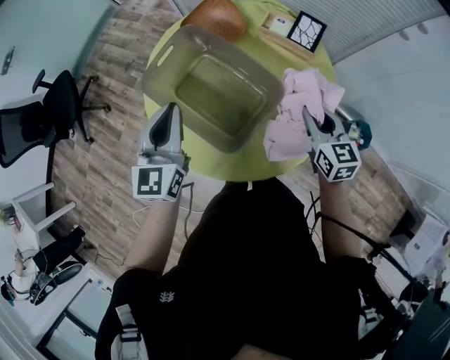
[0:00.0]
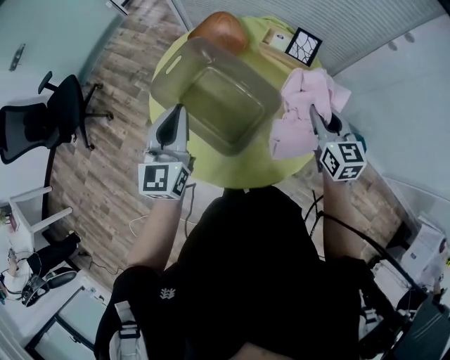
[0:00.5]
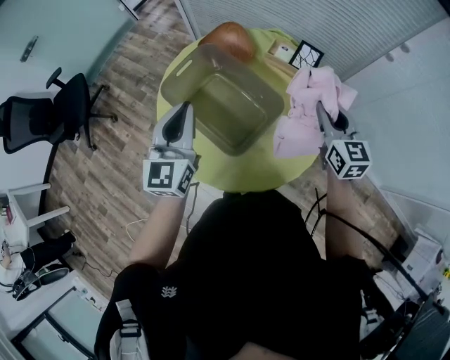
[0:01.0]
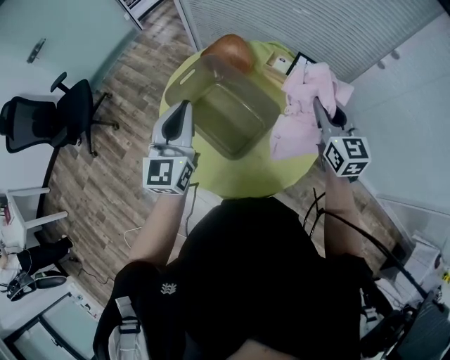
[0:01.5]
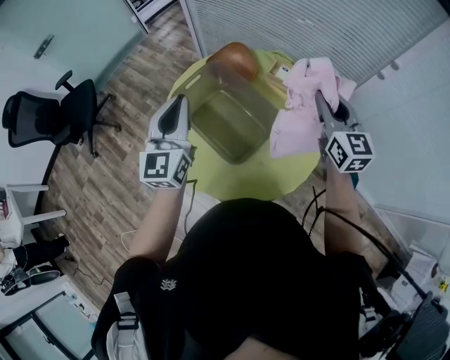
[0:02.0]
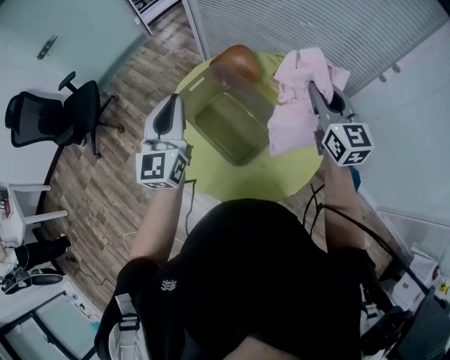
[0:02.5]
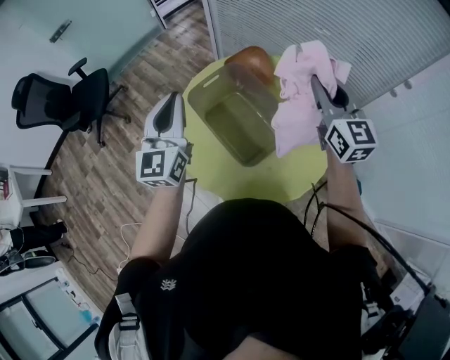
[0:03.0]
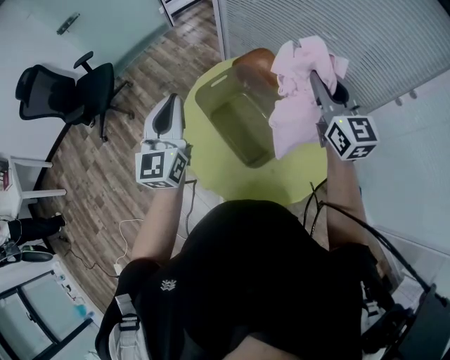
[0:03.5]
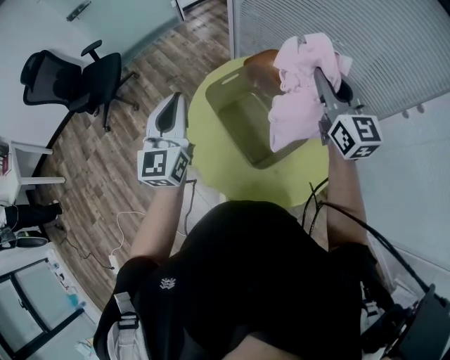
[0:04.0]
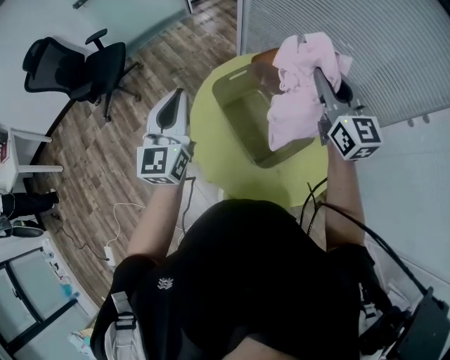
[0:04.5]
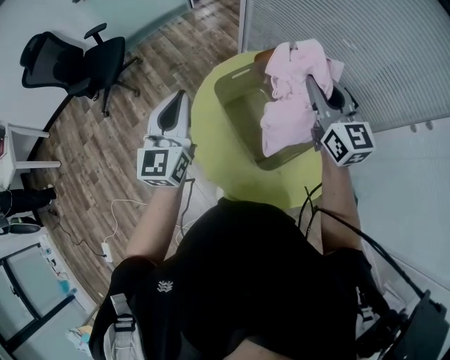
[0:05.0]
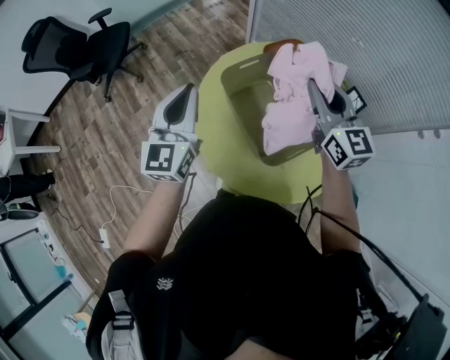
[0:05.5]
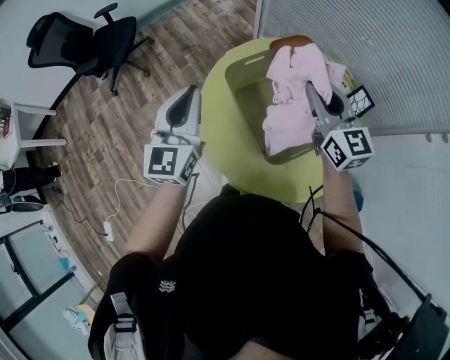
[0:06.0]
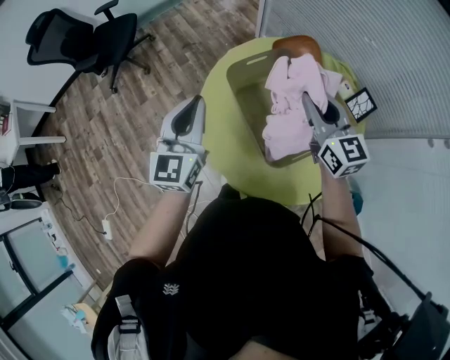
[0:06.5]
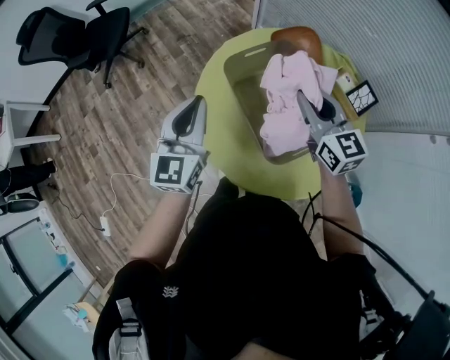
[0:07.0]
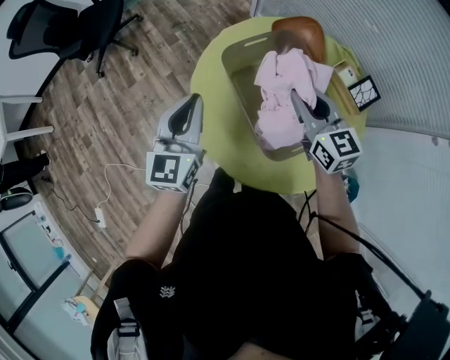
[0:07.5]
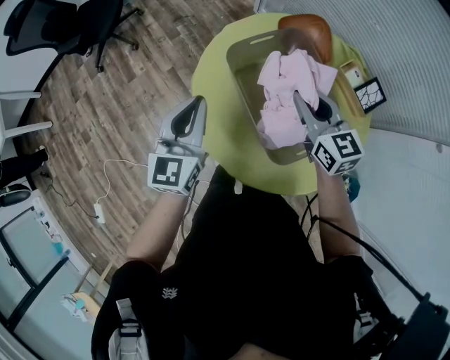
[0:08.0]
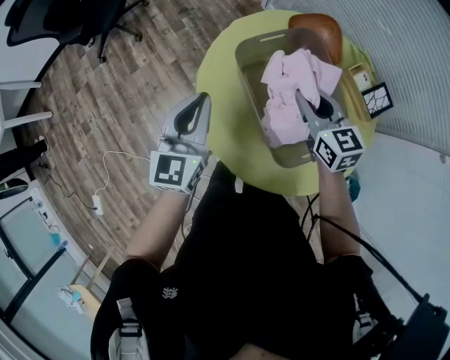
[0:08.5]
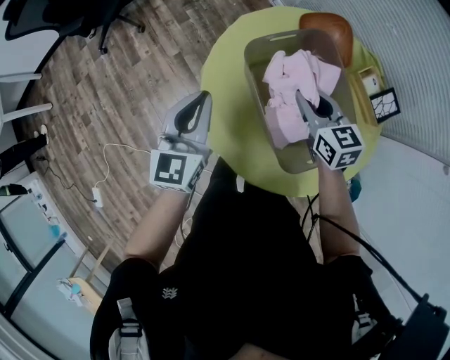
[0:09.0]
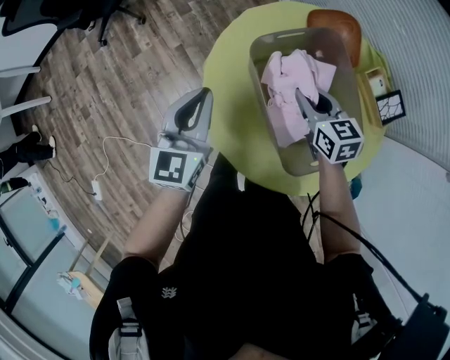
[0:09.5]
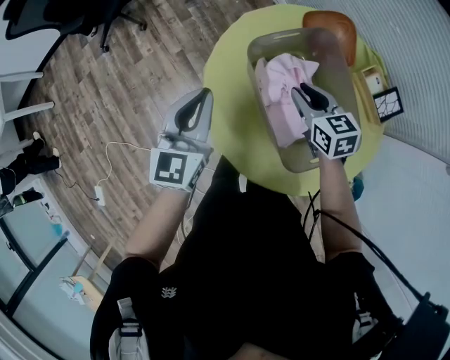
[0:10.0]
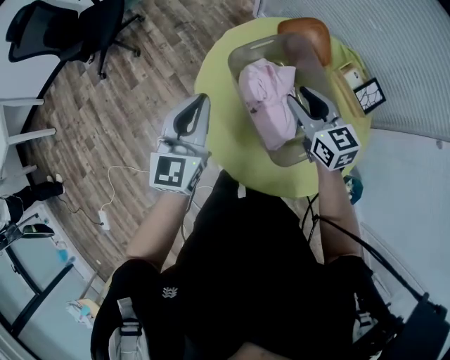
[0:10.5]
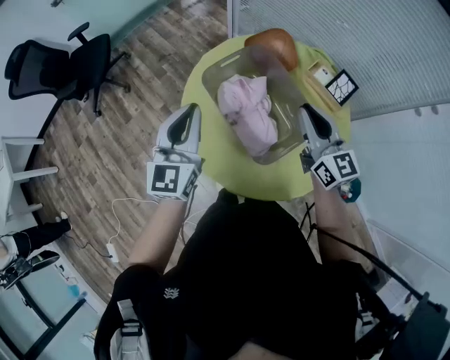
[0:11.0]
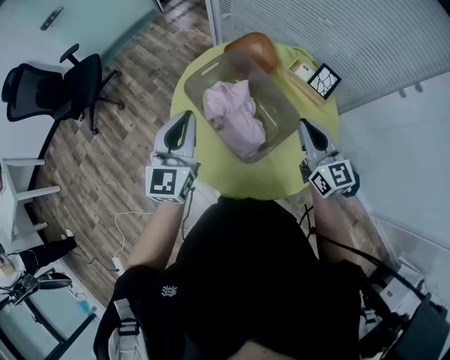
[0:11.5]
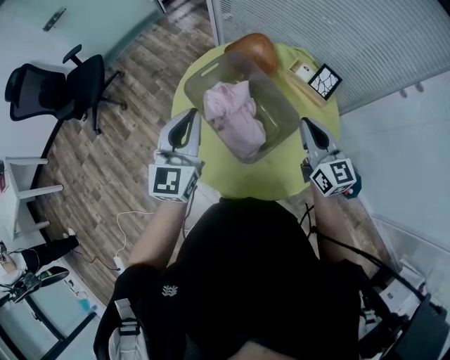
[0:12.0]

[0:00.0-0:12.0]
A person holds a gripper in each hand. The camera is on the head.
0:00.0 to 0:02.0: The left gripper is displaced upward by about 10 cm, while the right gripper goes about 20 cm upward, and changes its angle by about 20 degrees.
0:02.0 to 0:04.0: The right gripper is displaced to the left, upward and forward by roughly 15 cm. Meanwhile the left gripper shifts about 10 cm to the left.
0:04.0 to 0:06.0: The right gripper is displaced downward and to the left by approximately 10 cm.
0:06.0 to 0:08.0: The grippers both shift downward by roughly 10 cm.
0:08.0 to 0:10.0: The right gripper shifts roughly 10 cm downward.
0:10.0 to 0:12.0: The right gripper goes some 30 cm to the right, upward and backward, and points its fingers about 30 degrees further upward; the left gripper shifts approximately 20 cm to the right and upward, and turns by about 20 degrees.

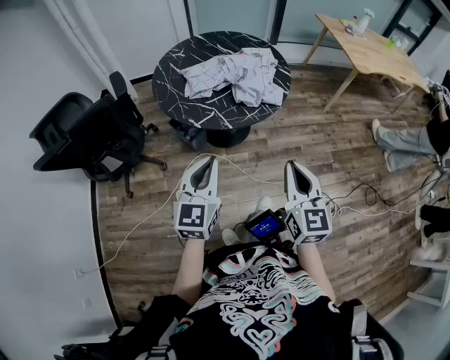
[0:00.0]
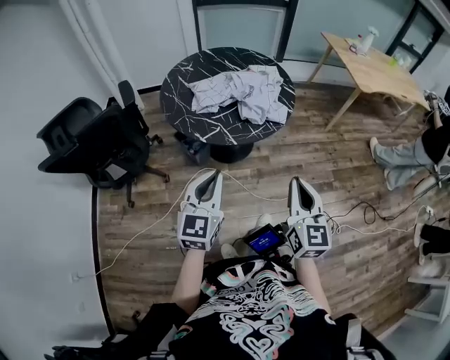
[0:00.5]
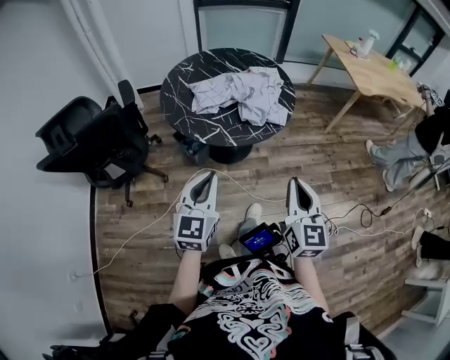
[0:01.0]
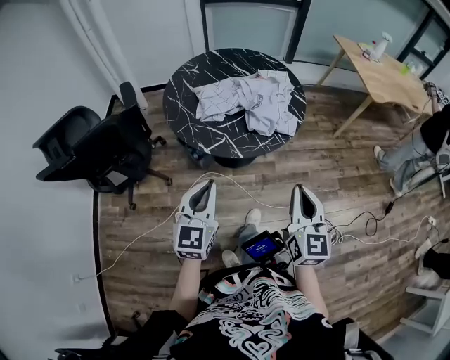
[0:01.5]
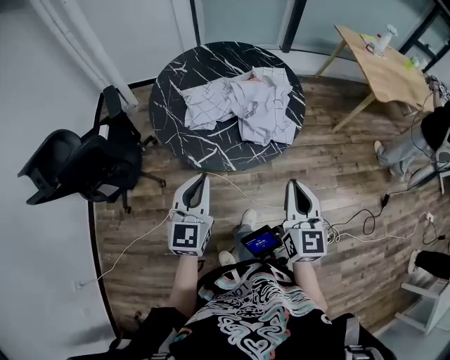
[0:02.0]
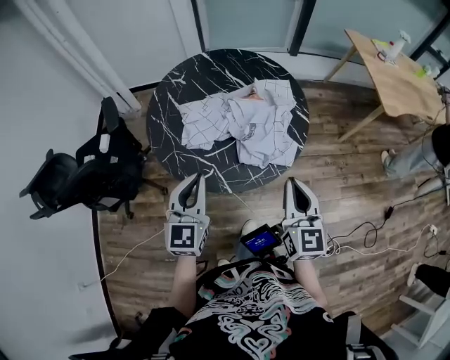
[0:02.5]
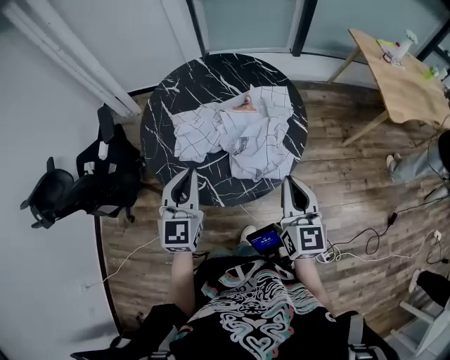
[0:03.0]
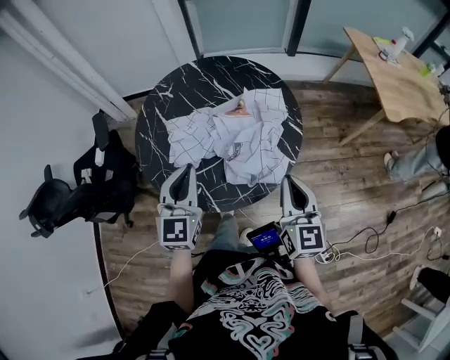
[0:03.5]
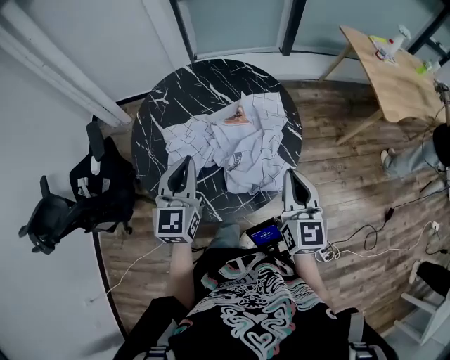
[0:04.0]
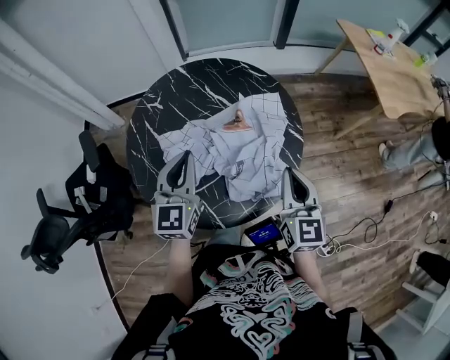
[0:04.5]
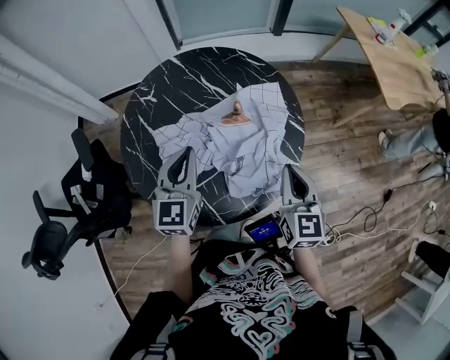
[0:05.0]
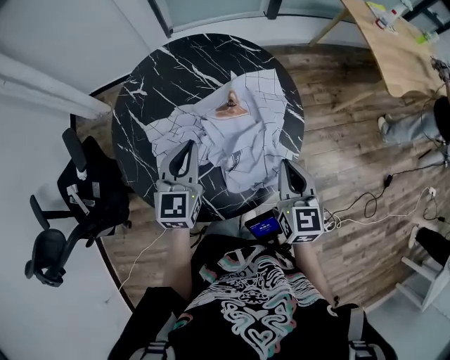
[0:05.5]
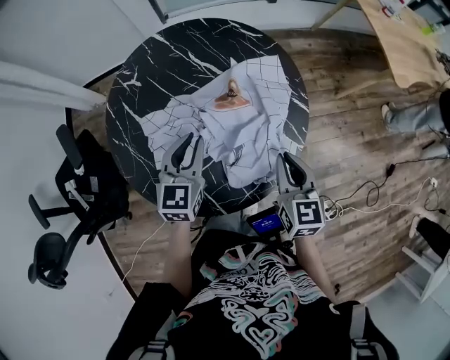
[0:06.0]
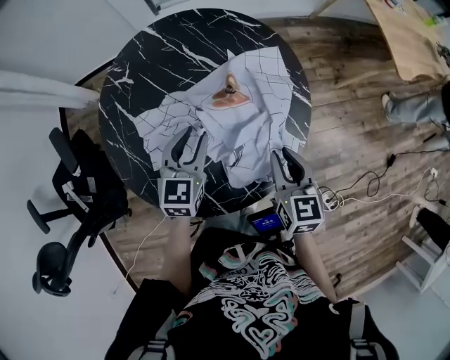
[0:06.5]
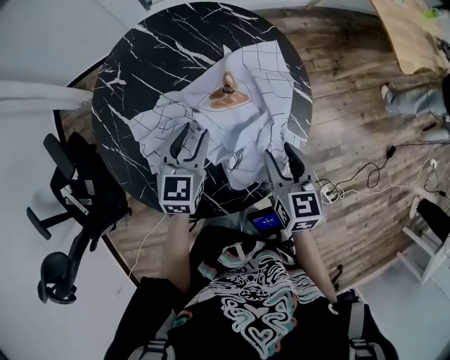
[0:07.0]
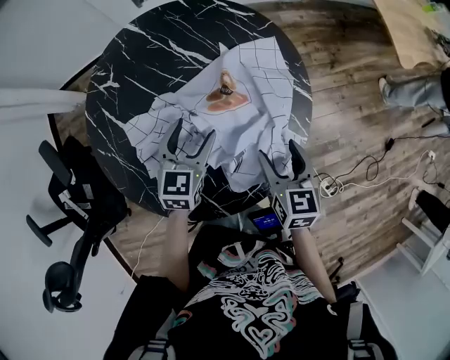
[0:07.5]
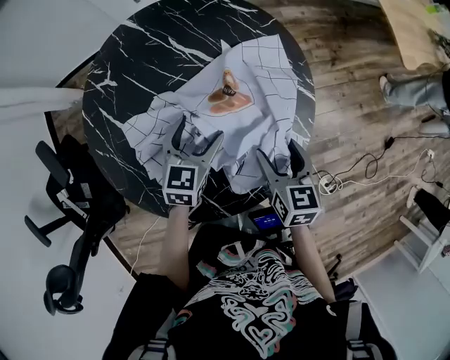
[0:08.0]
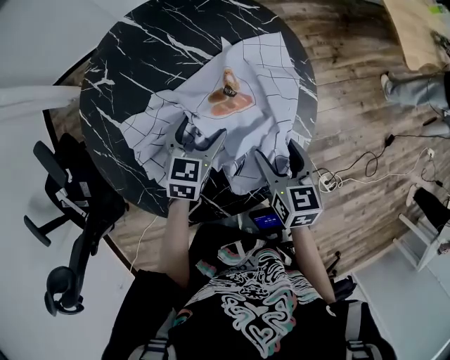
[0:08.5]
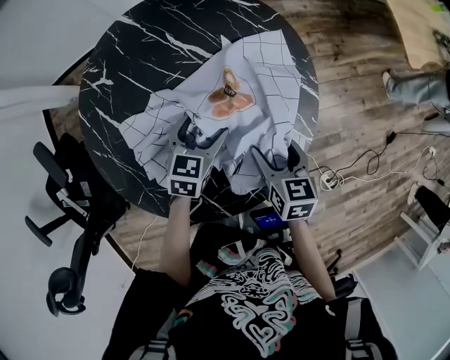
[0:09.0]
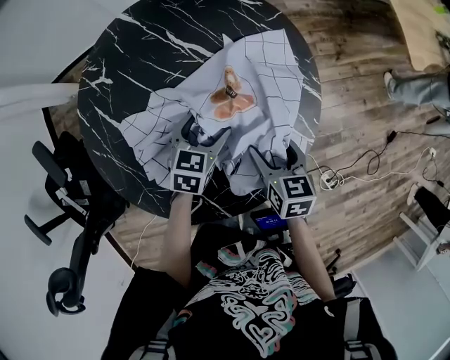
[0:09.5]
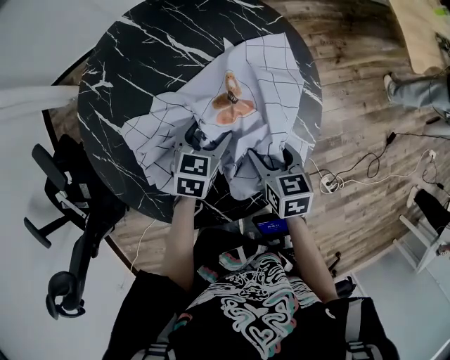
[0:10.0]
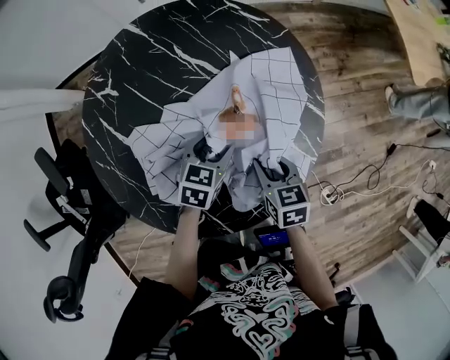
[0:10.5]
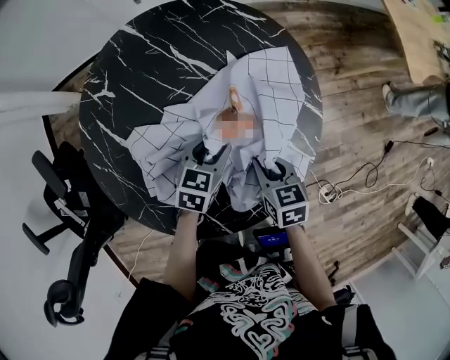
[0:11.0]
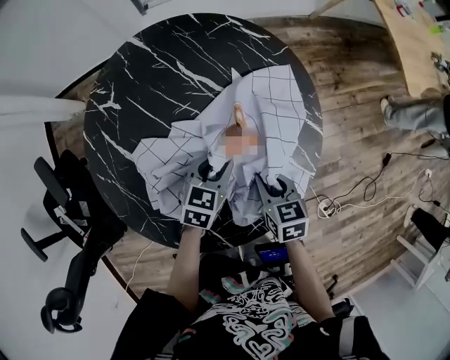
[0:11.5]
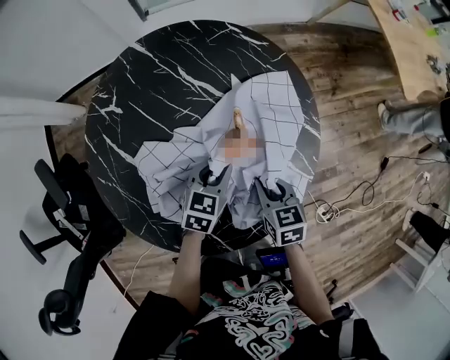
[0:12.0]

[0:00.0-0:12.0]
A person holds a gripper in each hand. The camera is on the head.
0:00.0 to 0:02.0: Both grippers move forward, about 15 cm.
0:02.0 to 0:04.0: The two grippers go approximately 25 cm forward.
0:04.0 to 0:06.0: The grippers both shift downward and forward by approximately 15 cm.
0:06.0 to 0:08.0: The right gripper goes roughly 10 cm downward, and opens up, while the left gripper moves downward and forward, some 10 cm, and opens up.
0:08.0 to 0:10.0: The grippers both shift downward by approximately 5 cm.
0:10.0 to 0:12.0: The left gripper closes; the right gripper closes.

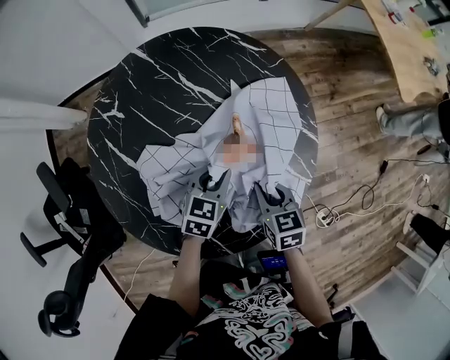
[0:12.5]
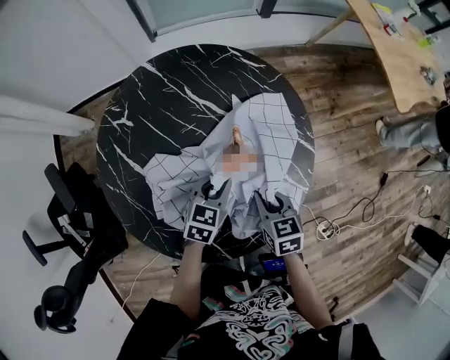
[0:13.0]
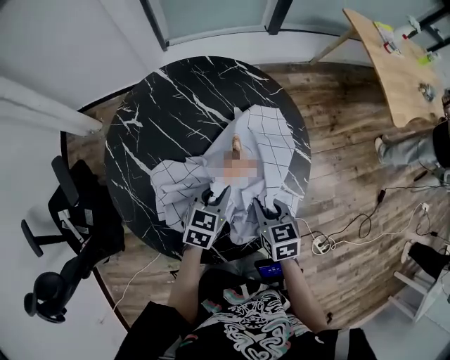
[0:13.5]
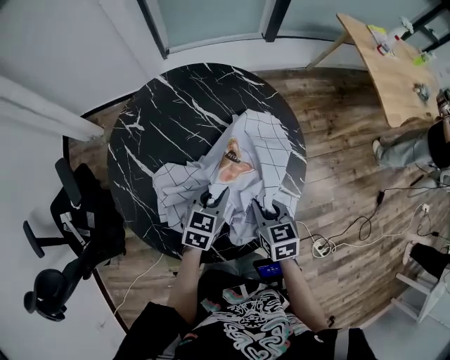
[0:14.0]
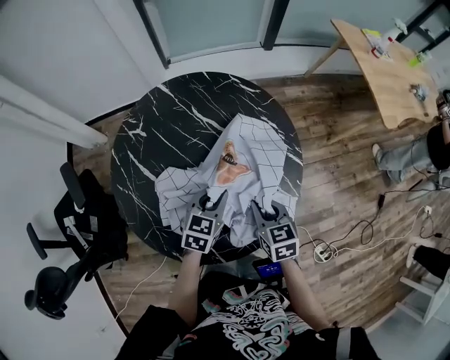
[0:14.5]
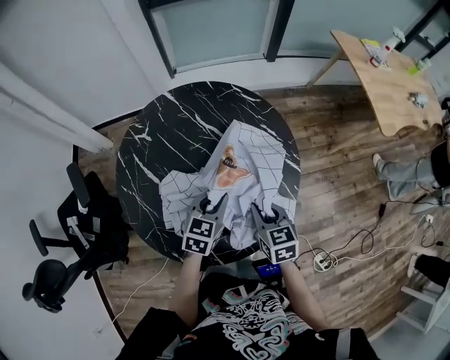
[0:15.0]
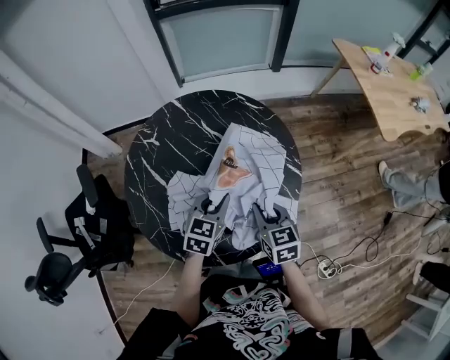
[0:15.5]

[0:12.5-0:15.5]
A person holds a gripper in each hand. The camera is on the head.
0:12.5 to 0:14.0: Both grippers move upward, roughly 5 cm.
0:14.0 to 0:15.5: Both grippers travel together upward, some 5 cm.
